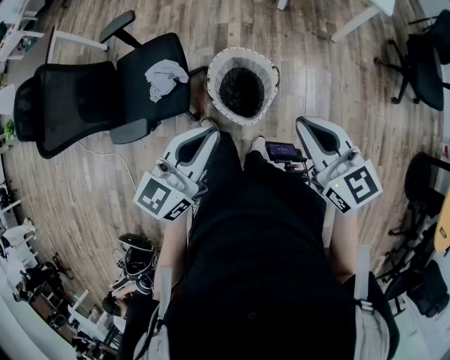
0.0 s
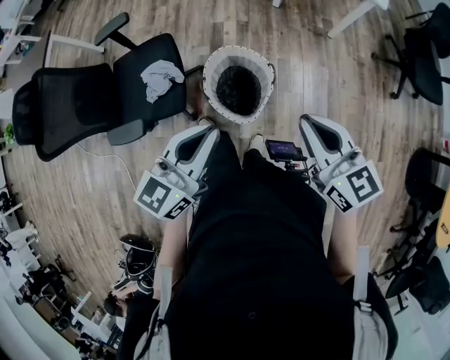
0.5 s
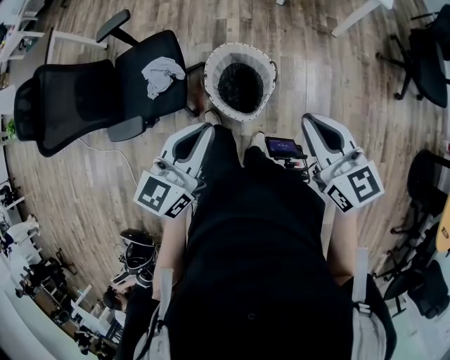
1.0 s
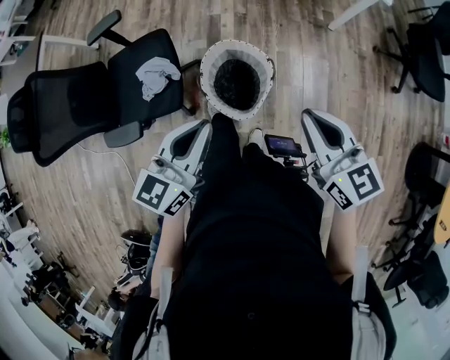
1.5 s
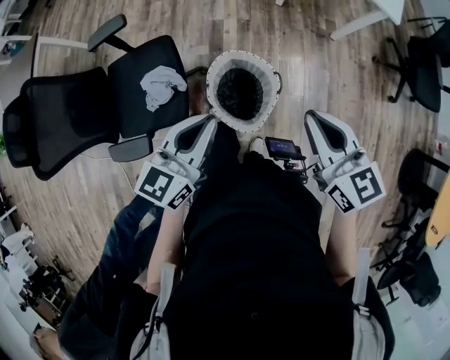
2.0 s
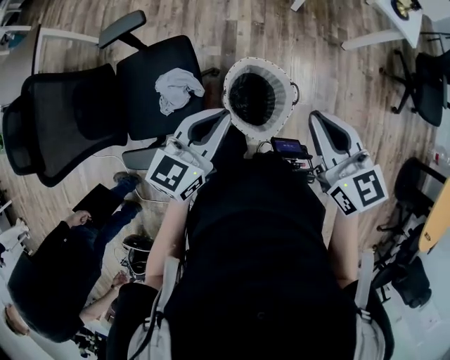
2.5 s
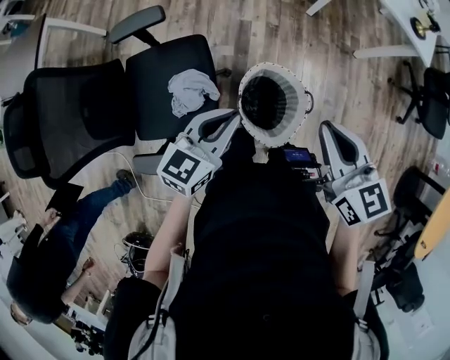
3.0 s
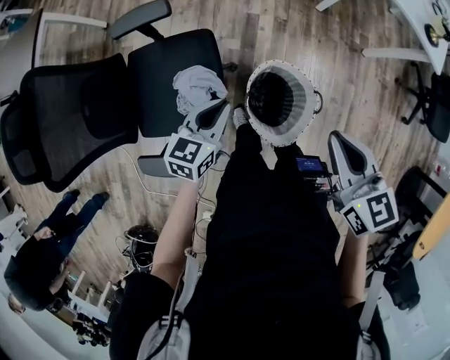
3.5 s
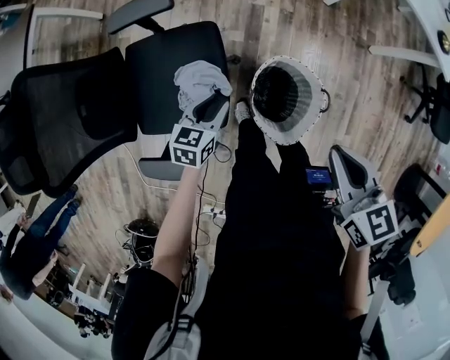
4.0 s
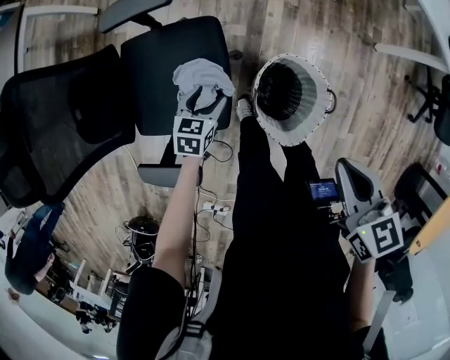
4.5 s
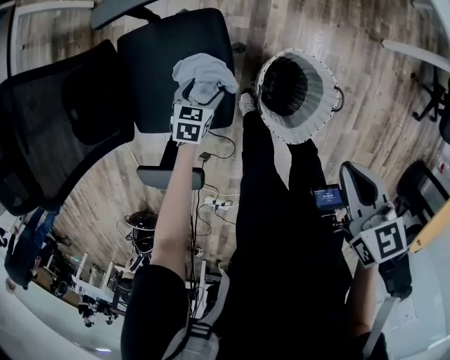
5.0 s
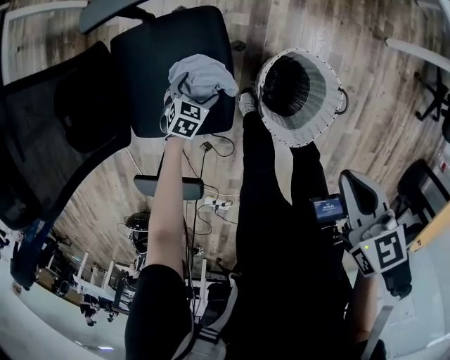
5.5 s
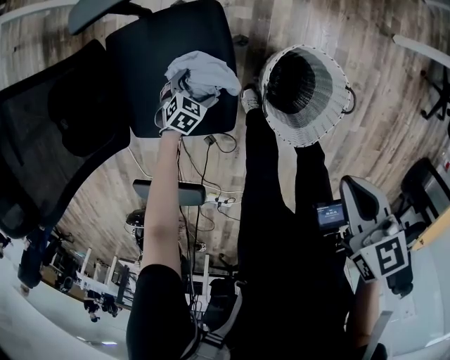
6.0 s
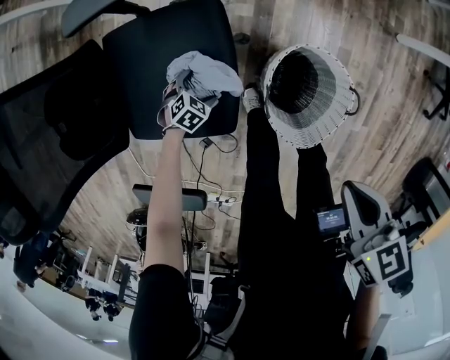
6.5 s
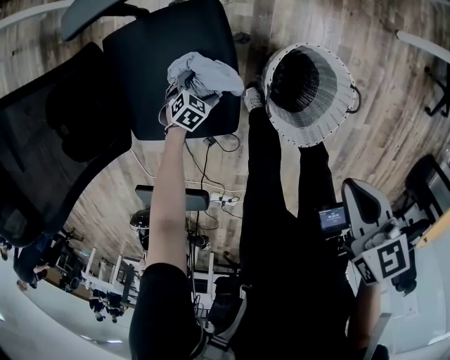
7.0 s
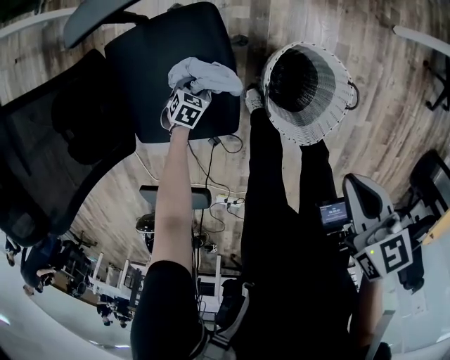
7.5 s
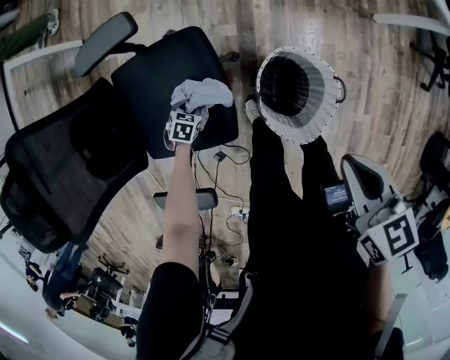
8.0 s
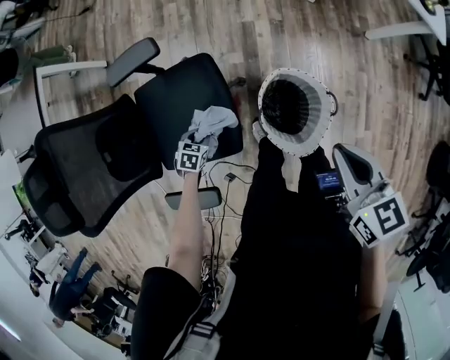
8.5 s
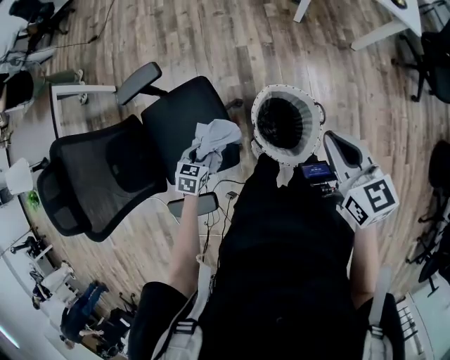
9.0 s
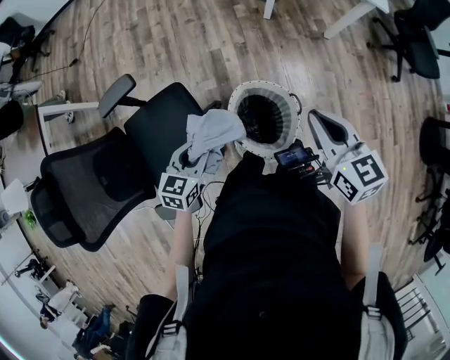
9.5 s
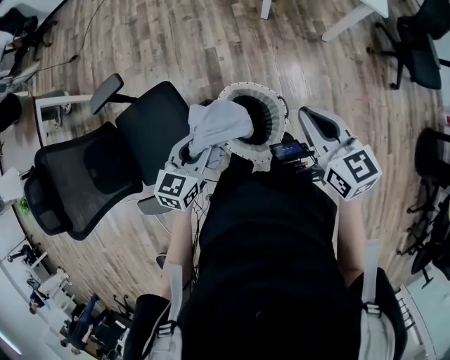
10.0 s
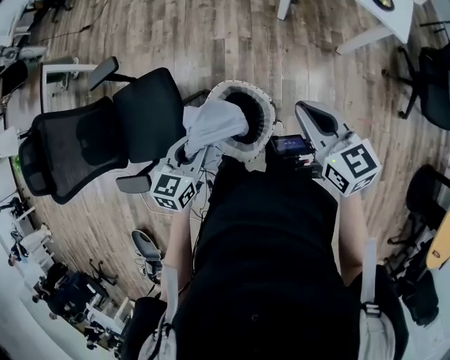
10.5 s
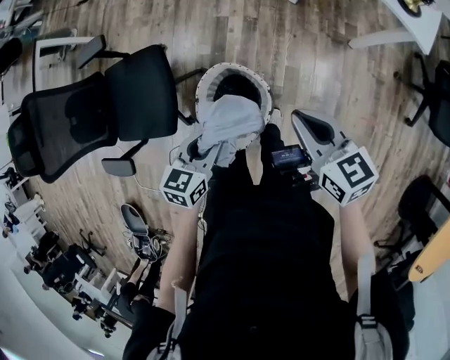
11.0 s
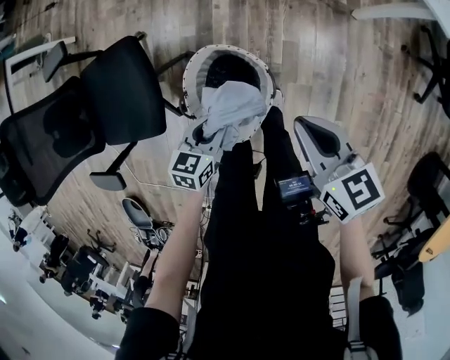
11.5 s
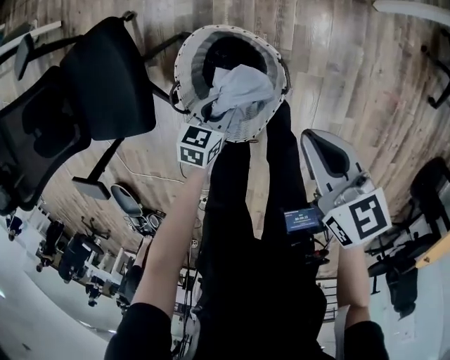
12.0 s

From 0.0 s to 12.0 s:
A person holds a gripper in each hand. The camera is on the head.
From 0.0 s to 2.0 s: Both grippers move forward, approximately 10 cm.
From 2.0 s to 4.0 s: The left gripper goes some 35 cm downward, to the left and forward, and changes its angle by about 30 degrees; the right gripper goes some 20 cm to the left and forward, and swivels approximately 20 degrees.
From 4.0 s to 6.0 s: The right gripper moves downward, roughly 10 cm. Meanwhile the left gripper is displaced downward by roughly 30 cm, rotates approximately 40 degrees, and opens up.
From 6.0 s to 8.0 s: The left gripper closes.
From 8.0 s to 10.0 s: The left gripper moves upward and to the right, some 50 cm, and tips its fingers upward by roughly 40 degrees; the right gripper moves to the right and upward, about 20 cm, and changes its angle by about 20 degrees.
From 10.0 s to 12.0 s: The right gripper is displaced downward by approximately 25 cm, and swivels roughly 30 degrees; the left gripper shifts roughly 40 cm downward and to the right, and turns by roughly 20 degrees.

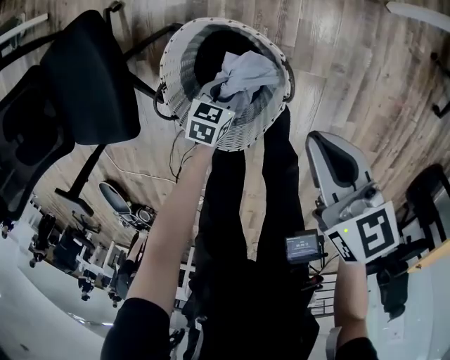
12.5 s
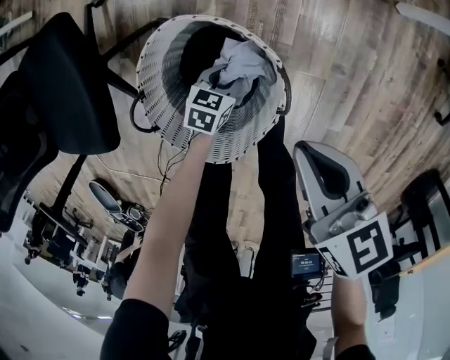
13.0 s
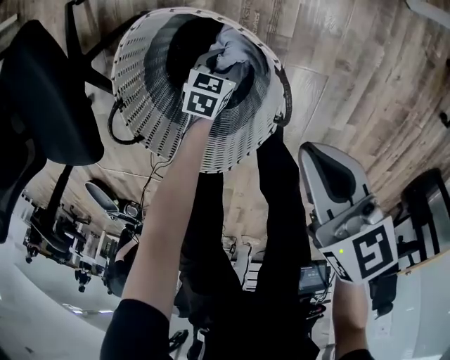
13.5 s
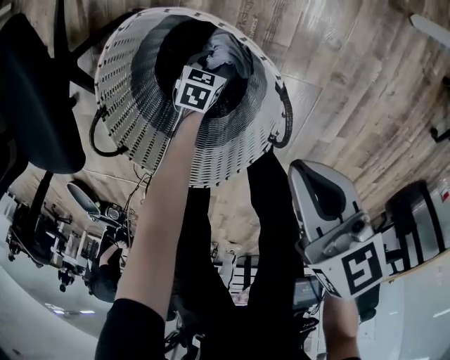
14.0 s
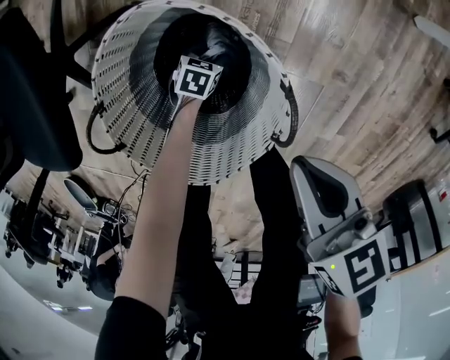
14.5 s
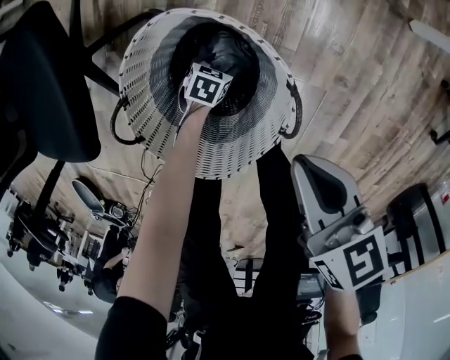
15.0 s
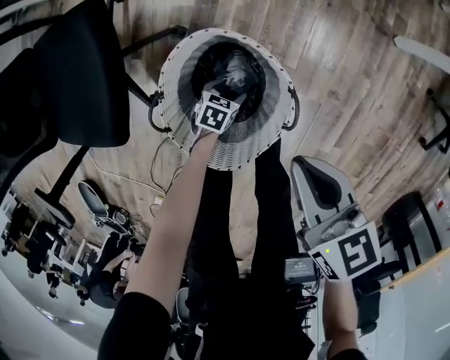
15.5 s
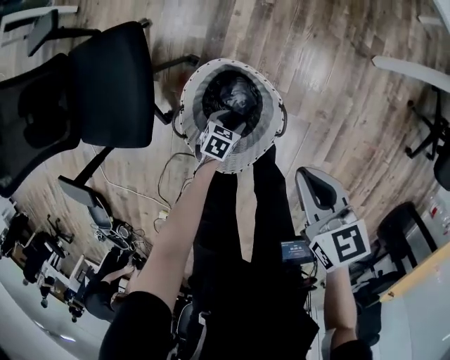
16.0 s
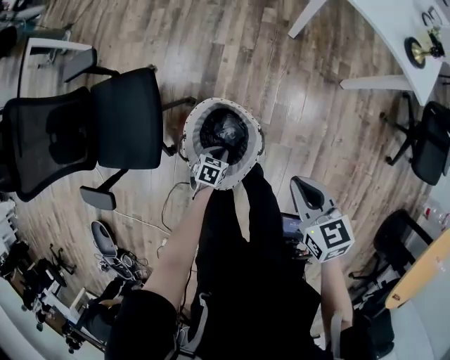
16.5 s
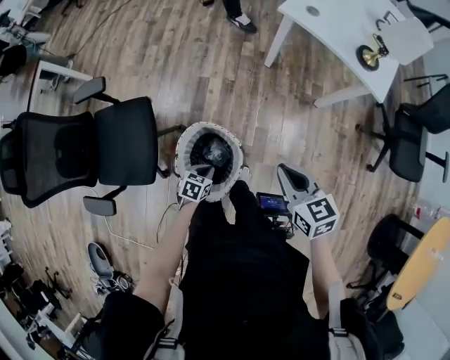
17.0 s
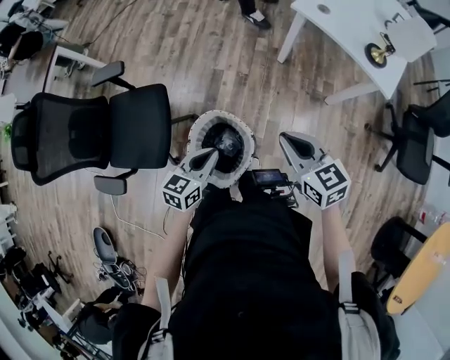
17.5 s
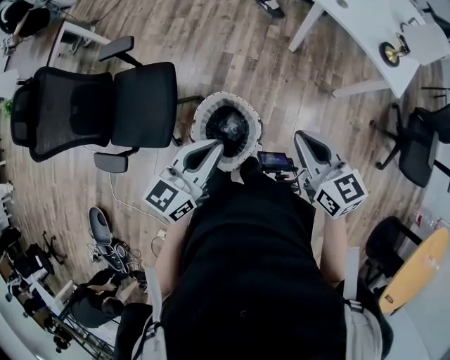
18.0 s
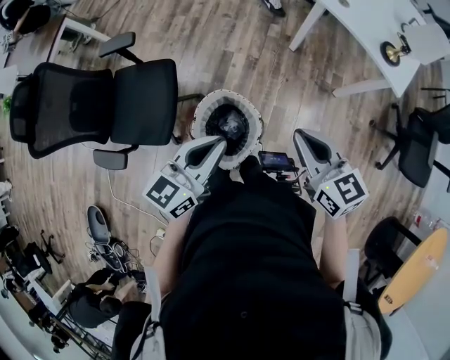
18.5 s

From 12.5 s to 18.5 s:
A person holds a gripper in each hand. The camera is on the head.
From 12.5 s to 14.5 s: The right gripper goes some 15 cm downward, while the left gripper goes some 25 cm downward.
From 14.5 s to 16.5 s: The two grippers go some 35 cm upward.
From 16.5 s to 18.5 s: The left gripper goes roughly 50 cm upward, and tips its fingers upward by about 50 degrees; the right gripper shifts approximately 15 cm upward, and changes its angle by roughly 20 degrees.

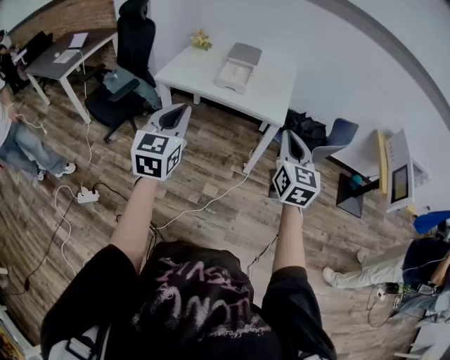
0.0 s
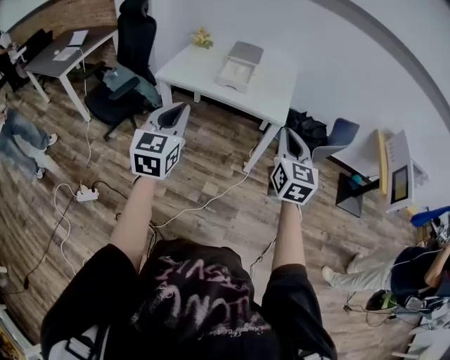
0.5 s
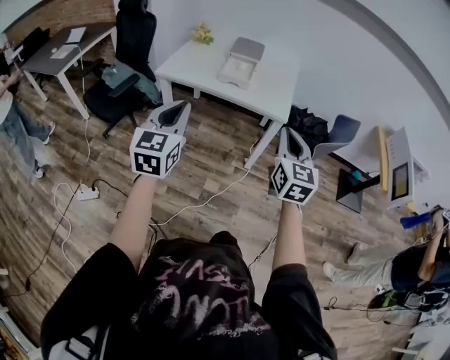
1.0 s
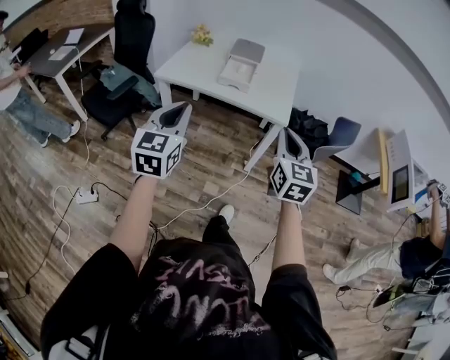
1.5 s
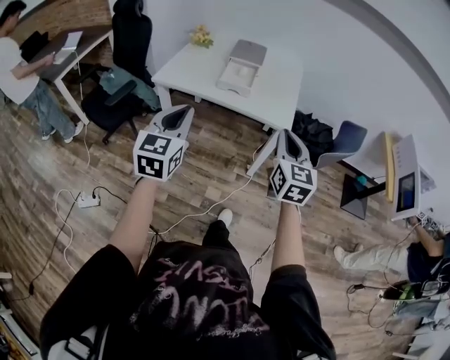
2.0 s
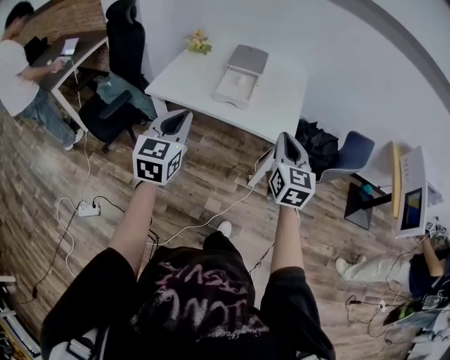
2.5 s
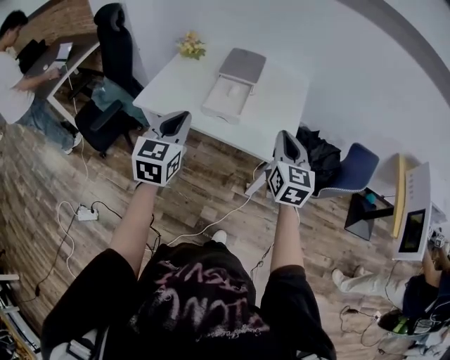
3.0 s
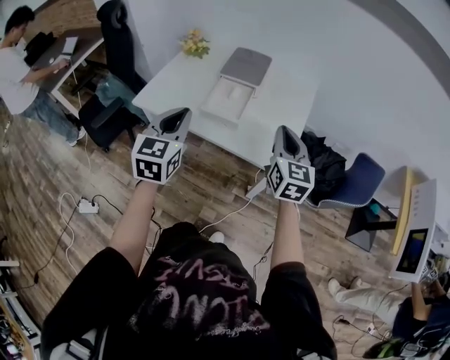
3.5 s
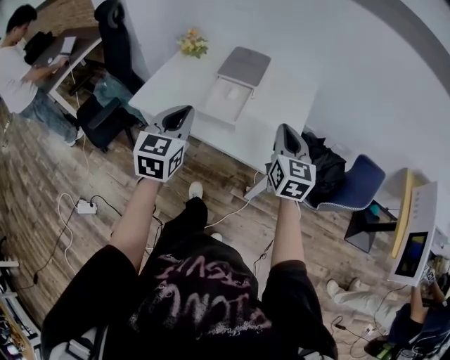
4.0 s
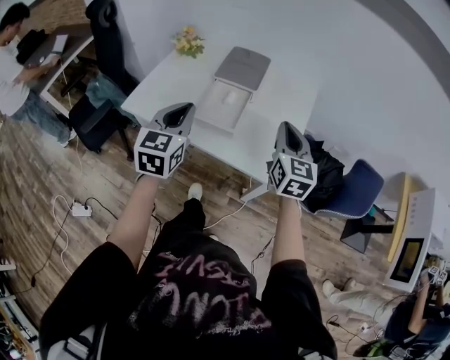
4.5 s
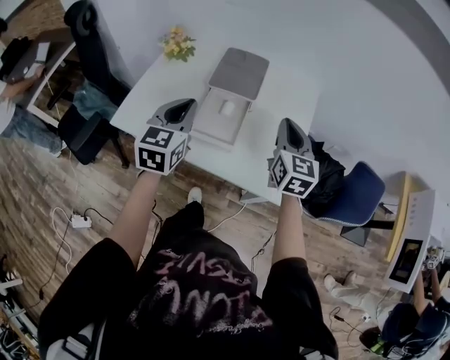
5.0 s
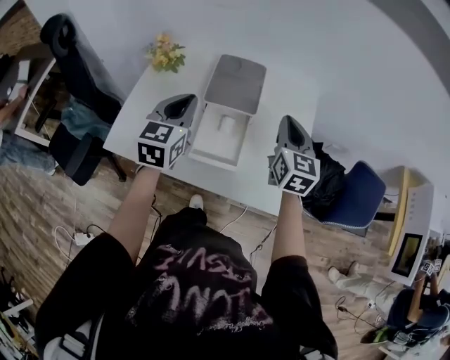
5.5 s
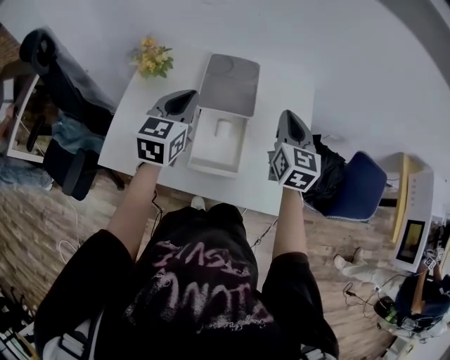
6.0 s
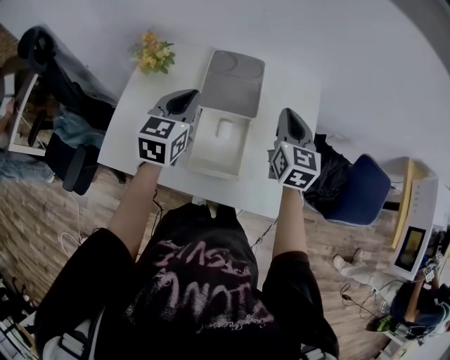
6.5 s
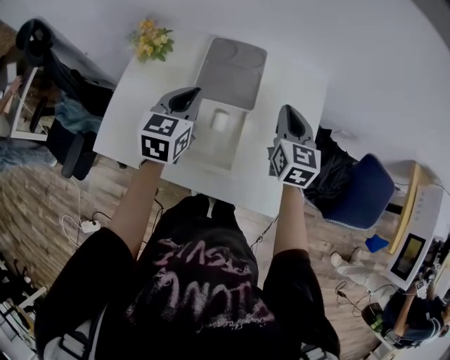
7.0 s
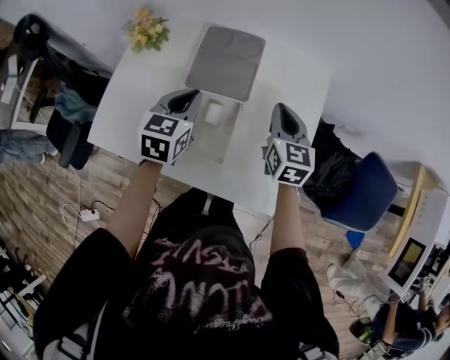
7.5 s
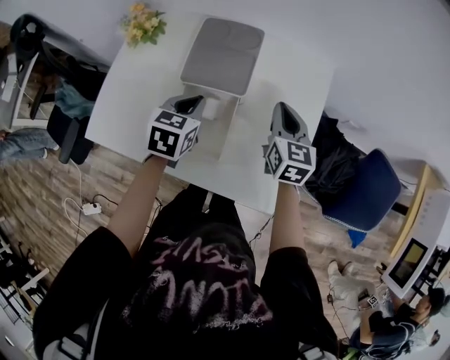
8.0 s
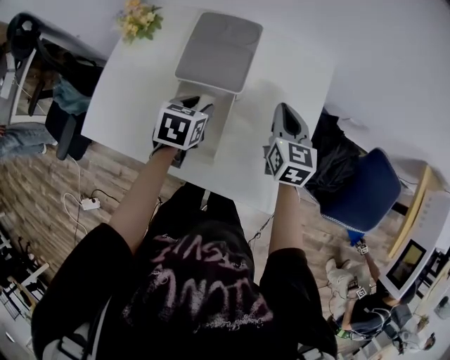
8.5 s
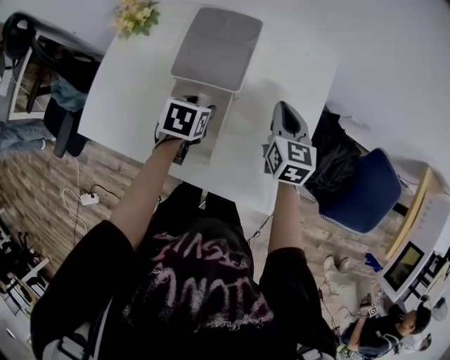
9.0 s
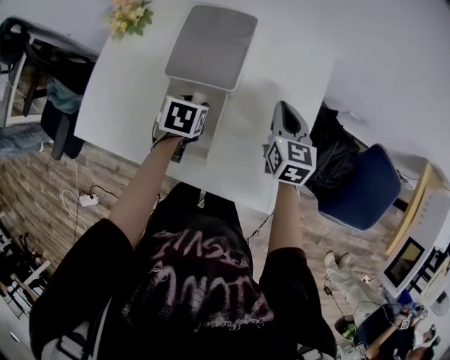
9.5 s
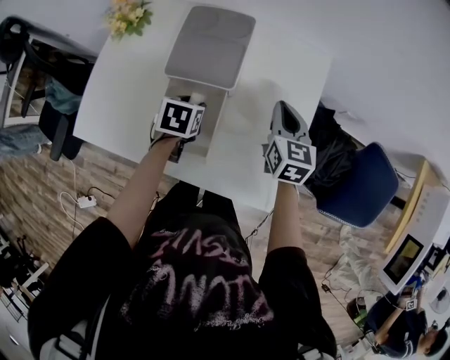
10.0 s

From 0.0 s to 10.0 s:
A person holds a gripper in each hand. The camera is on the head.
From 0.0 s to 2.0 s: Both grippers travel together forward, roughly 10 cm.
From 2.0 s to 4.0 s: Both grippers travel together forward, some 30 cm.
From 4.0 s to 6.0 s: Both grippers travel together forward, about 25 cm.
From 6.0 s to 8.0 s: The left gripper is displaced downward and to the right by roughly 15 cm, and changes its angle by approximately 30 degrees; the right gripper is displaced downward by some 10 cm.
From 8.0 s to 10.0 s: The left gripper goes some 10 cm downward, rotates approximately 20 degrees, and opens its fingers.
